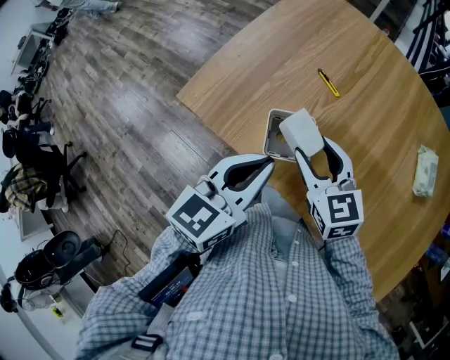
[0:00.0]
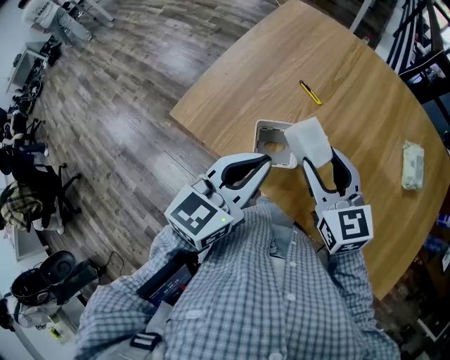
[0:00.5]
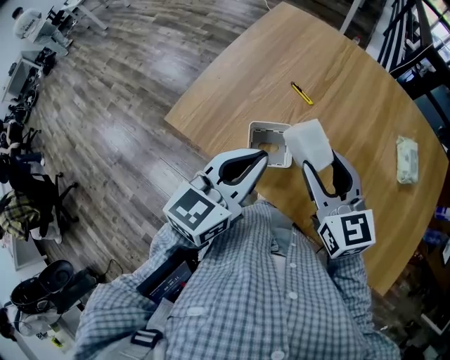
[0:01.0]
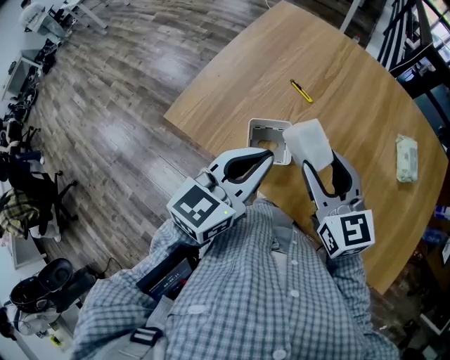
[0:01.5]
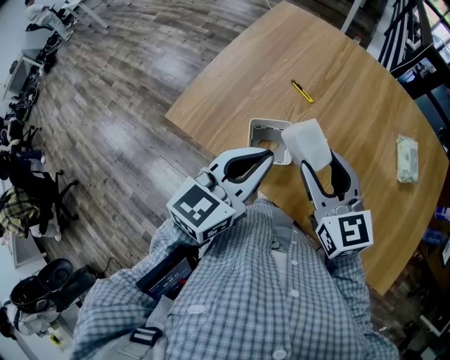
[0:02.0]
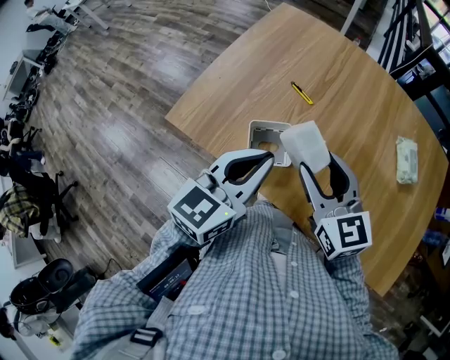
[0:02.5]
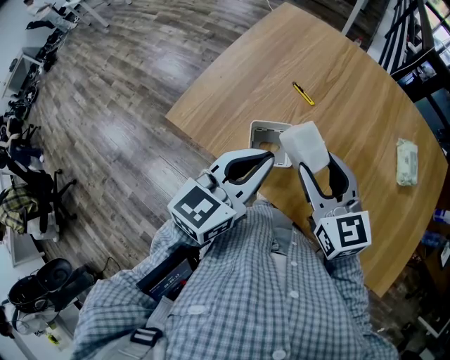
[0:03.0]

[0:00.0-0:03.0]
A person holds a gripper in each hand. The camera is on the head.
0:00.0 to 0:01.5: The right gripper heads upward and to the right, covering roughly 10 cm.
0:01.5 to 0:03.0: The two grippers keep their place.

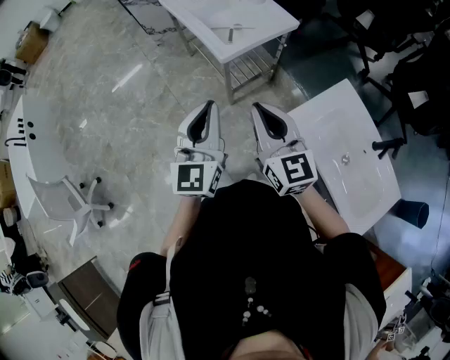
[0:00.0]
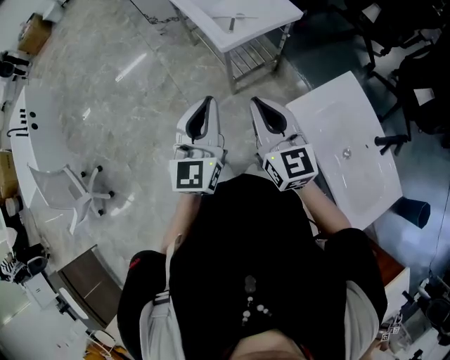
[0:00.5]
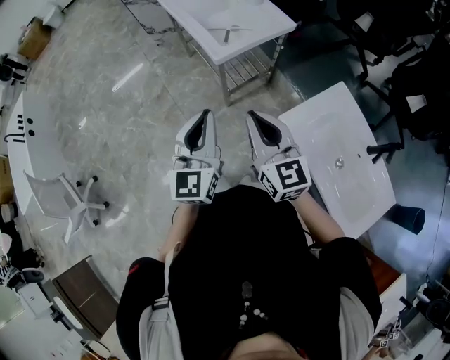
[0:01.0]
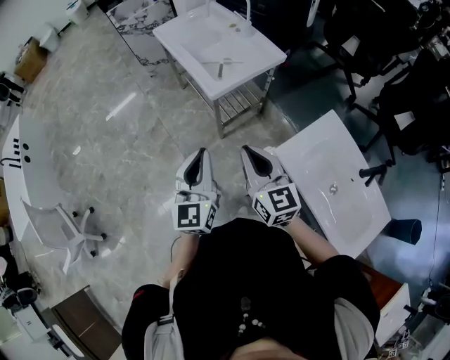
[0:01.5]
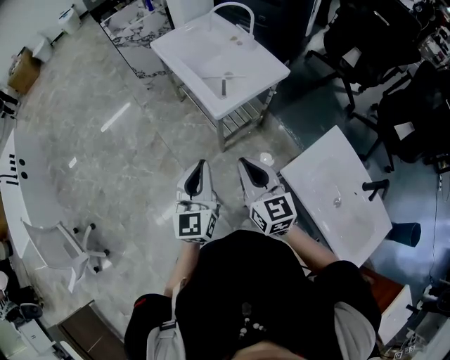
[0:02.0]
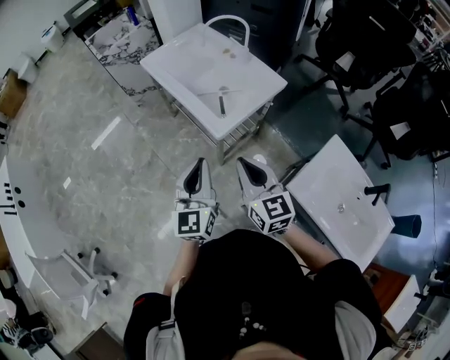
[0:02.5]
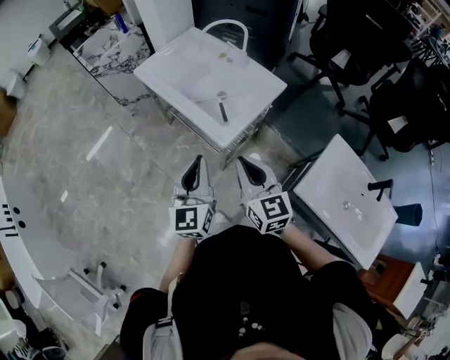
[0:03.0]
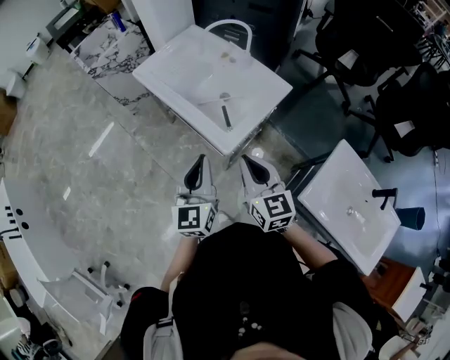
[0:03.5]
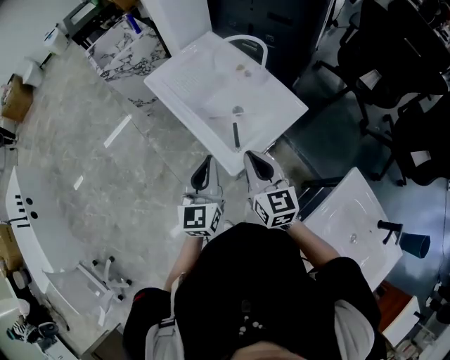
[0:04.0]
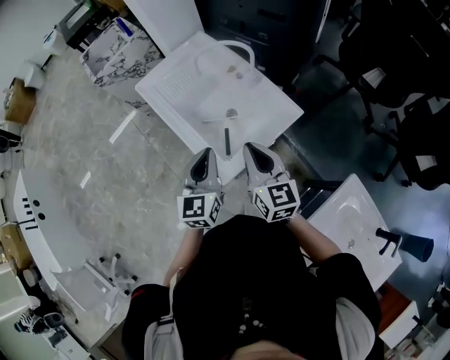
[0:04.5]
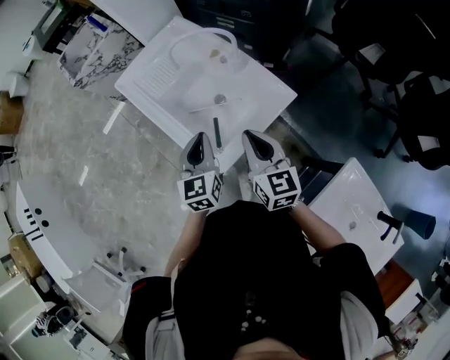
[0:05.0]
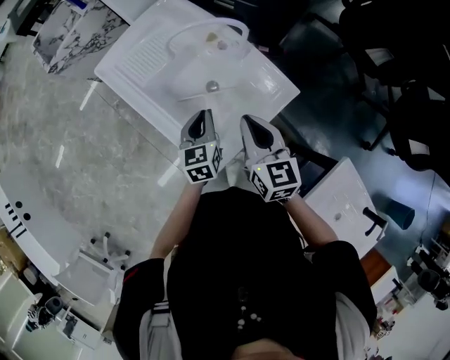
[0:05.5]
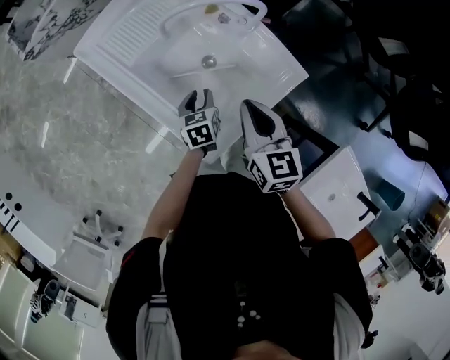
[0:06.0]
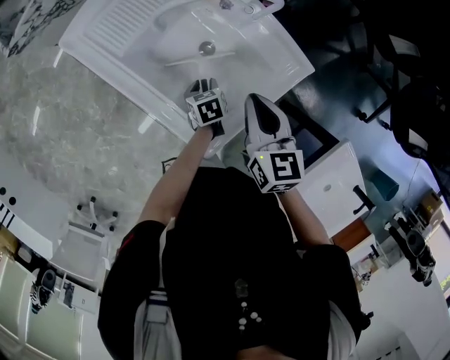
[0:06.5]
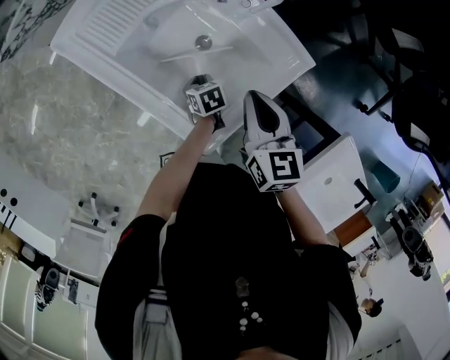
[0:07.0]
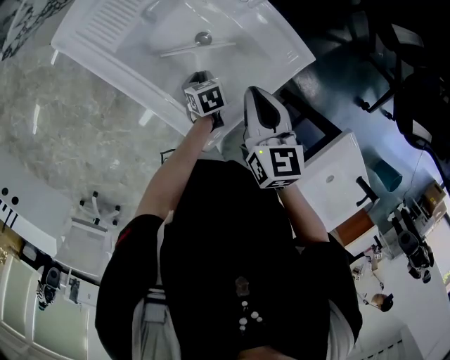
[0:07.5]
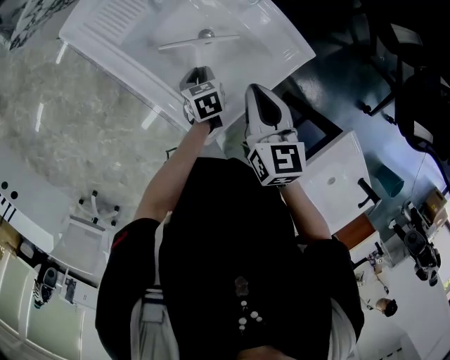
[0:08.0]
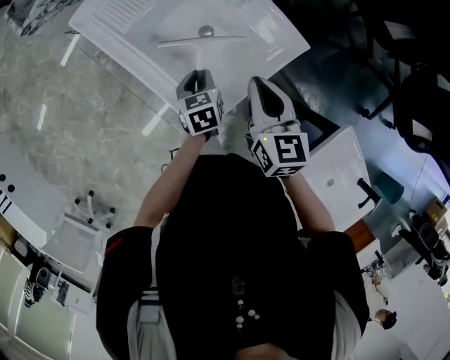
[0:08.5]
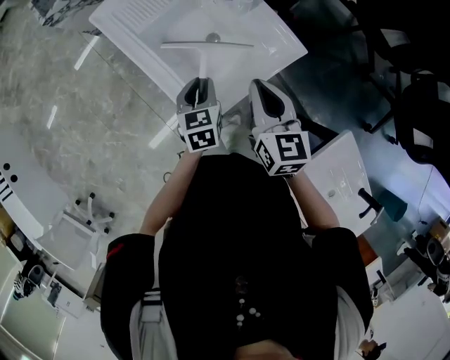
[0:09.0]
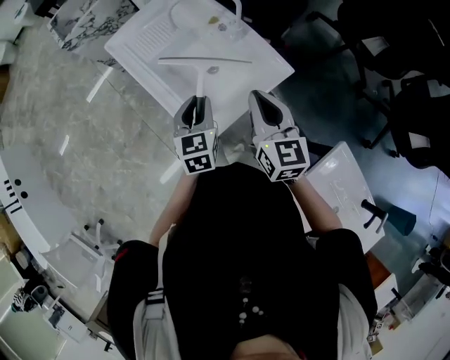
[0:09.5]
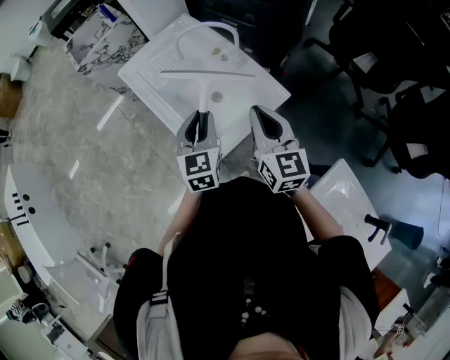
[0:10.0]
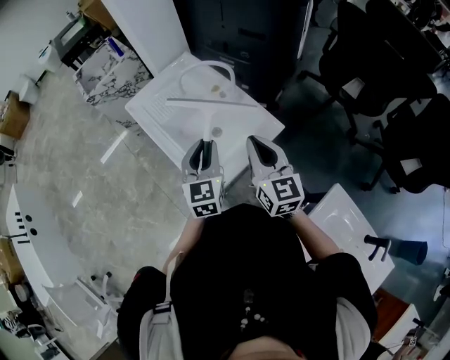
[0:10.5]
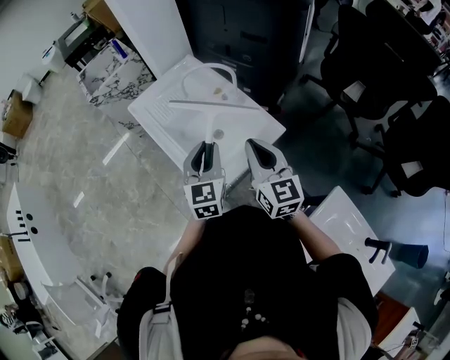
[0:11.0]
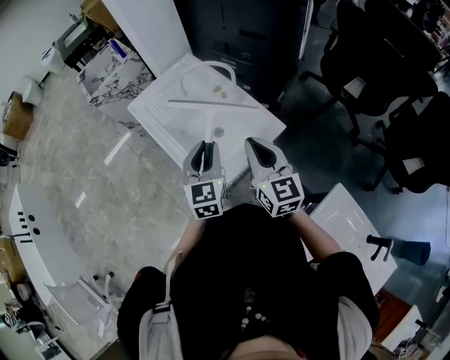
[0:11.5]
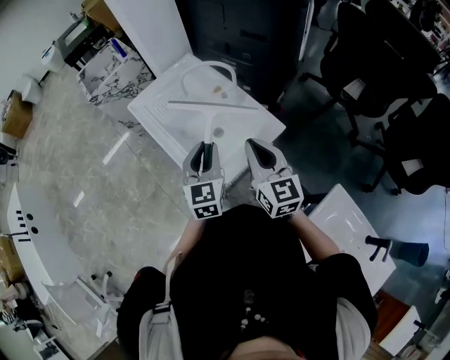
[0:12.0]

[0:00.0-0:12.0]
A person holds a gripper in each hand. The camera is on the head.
0:00.0 to 0:02.0: The grippers both shift forward and downward by roughly 10 cm.
0:02.0 to 0:04.0: Both grippers travel together forward, roughly 30 cm.
0:04.0 to 0:06.0: The right gripper heads forward, downward and to the right, covering about 25 cm. Meanwhile the left gripper moves downward and forward, roughly 35 cm, tilts its fingers about 40 degrees downward, and opens up.
0:06.0 to 0:08.0: The left gripper moves approximately 10 cm downward and comes back.
0:08.0 to 0:10.0: The left gripper is displaced upward by some 30 cm, and tips its fingers upward by some 40 degrees, while the right gripper travels upward and backward by some 15 cm, and rotates roughly 20 degrees.
0:10.0 to 0:12.0: The grippers move only a little.

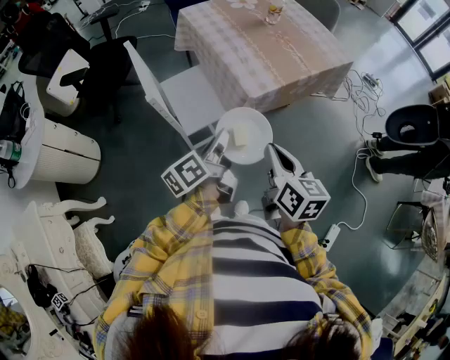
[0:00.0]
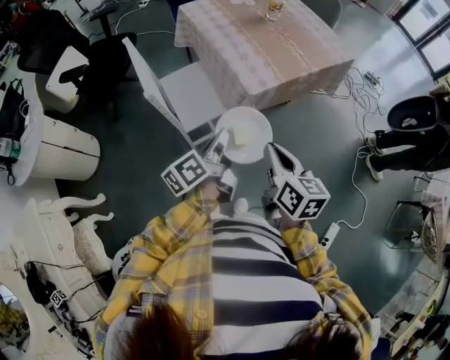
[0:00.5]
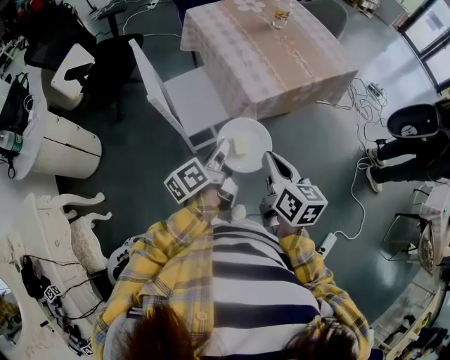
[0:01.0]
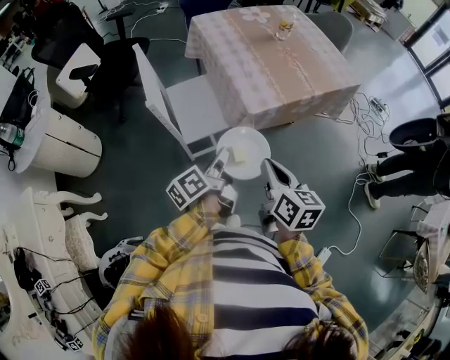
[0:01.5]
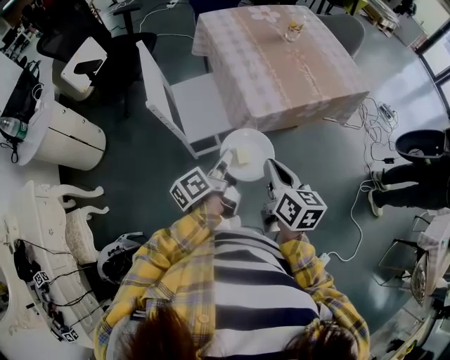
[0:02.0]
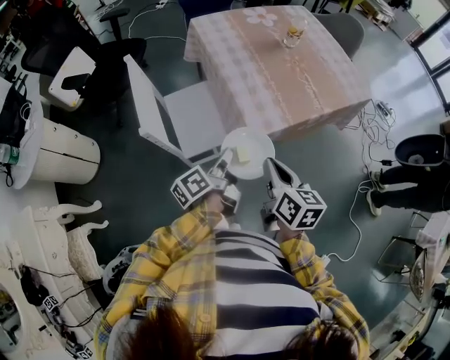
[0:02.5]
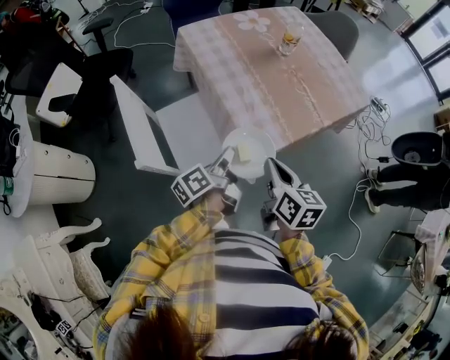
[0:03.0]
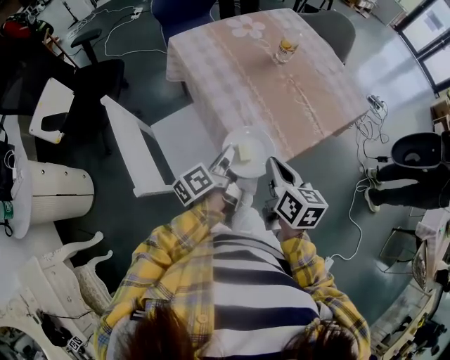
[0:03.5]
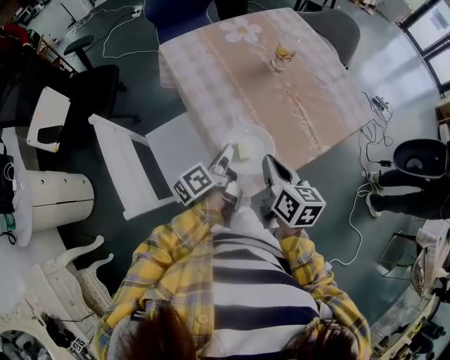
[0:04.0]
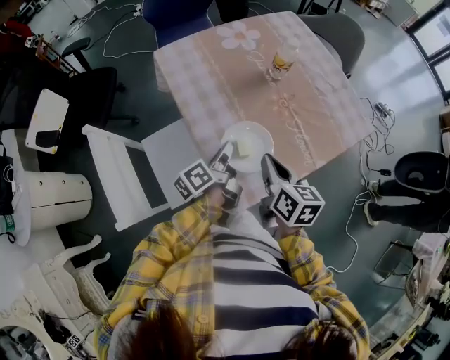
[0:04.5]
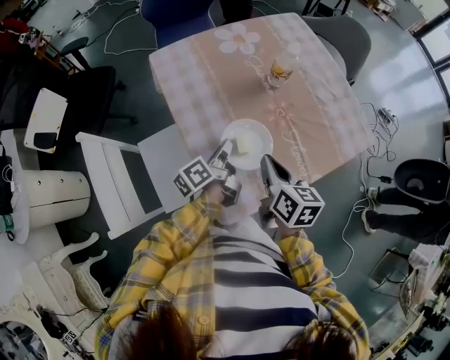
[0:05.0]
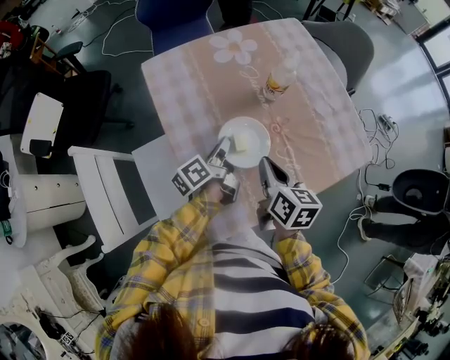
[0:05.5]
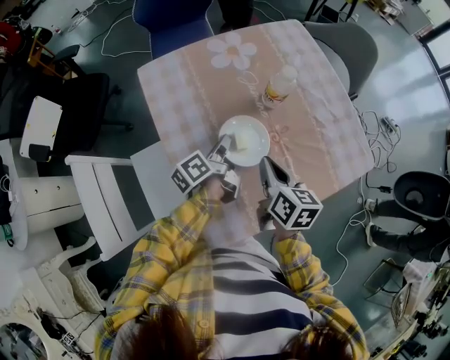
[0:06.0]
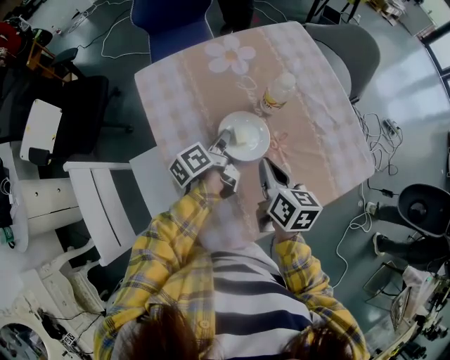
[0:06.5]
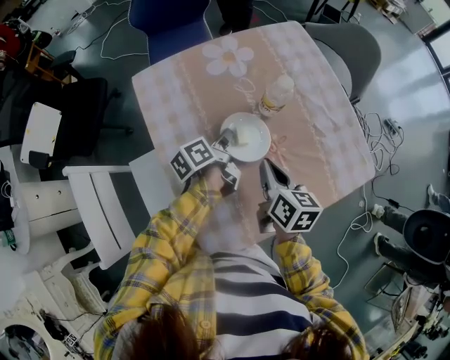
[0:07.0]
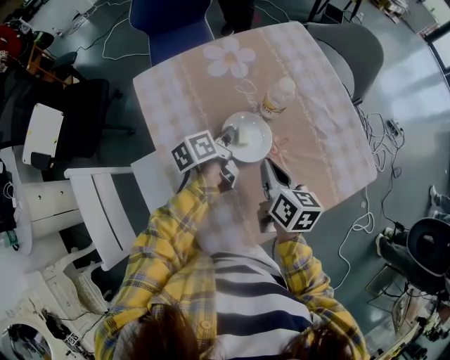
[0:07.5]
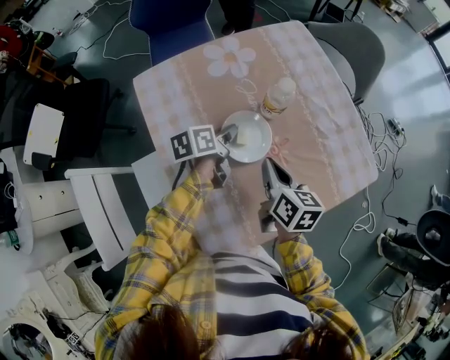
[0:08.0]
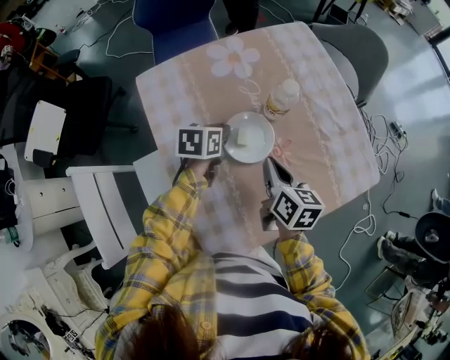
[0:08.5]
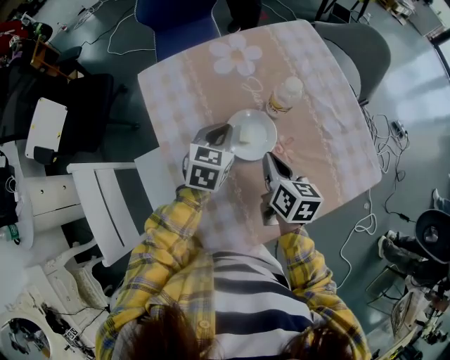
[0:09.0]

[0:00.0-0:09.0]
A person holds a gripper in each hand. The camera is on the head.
0:00.0 to 0:02.0: The right gripper changes place by approximately 5 cm. Meanwhile the left gripper shifts approximately 5 cm downward.
0:02.0 to 0:04.5: Both grippers travel together forward, roughly 35 cm.
0:04.5 to 0:07.0: The right gripper shifts approximately 15 cm forward and to the right; the left gripper heads forward, covering approximately 20 cm.
0:07.0 to 0:09.0: The left gripper twists some 70 degrees clockwise, seen from behind, and opens and closes again.

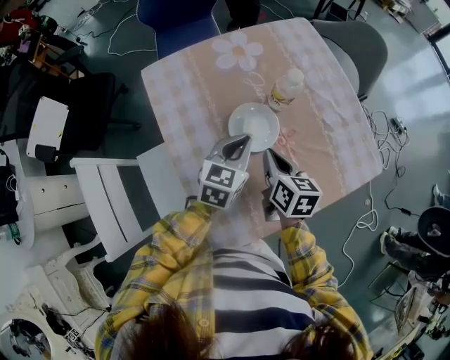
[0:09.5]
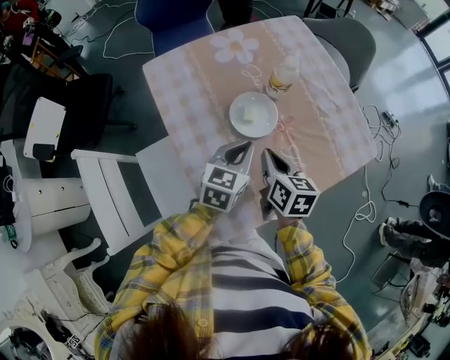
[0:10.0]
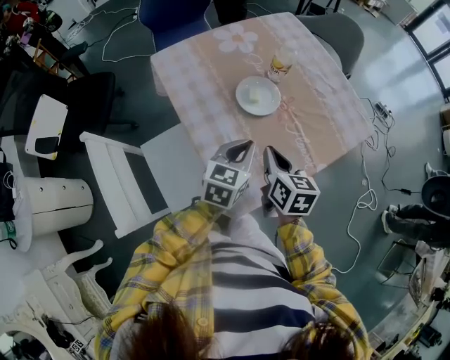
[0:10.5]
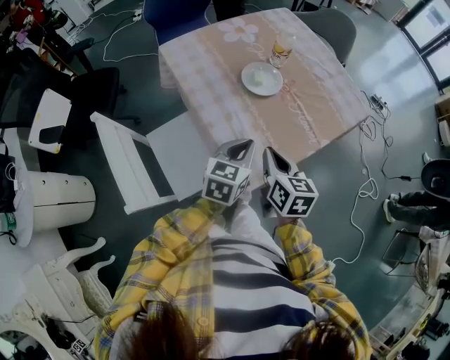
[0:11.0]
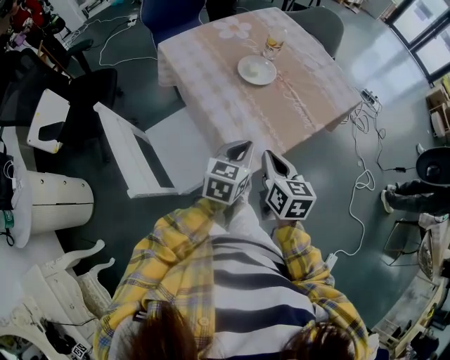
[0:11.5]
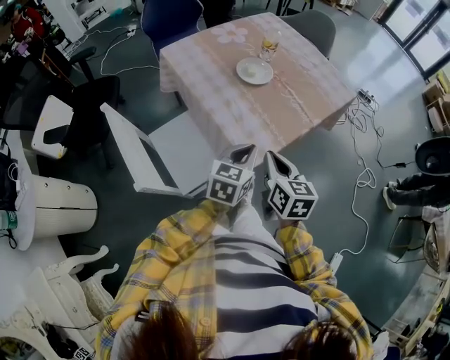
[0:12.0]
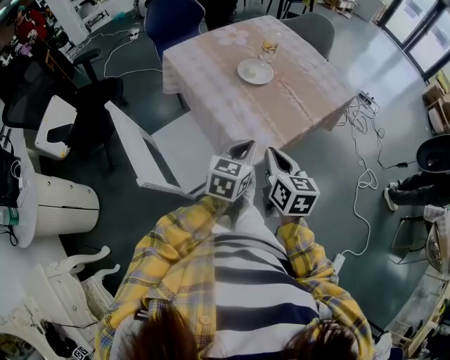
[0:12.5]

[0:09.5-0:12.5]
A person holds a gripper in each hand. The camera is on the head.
0:09.5 to 0:11.0: Both grippers travel together backward, some 20 cm.
0:11.0 to 0:12.5: Both grippers travel together backward, some 10 cm.
